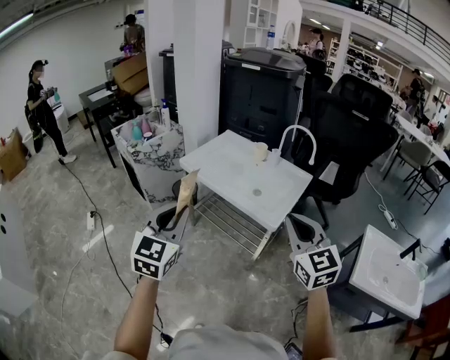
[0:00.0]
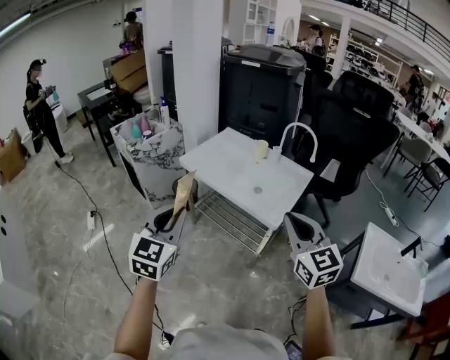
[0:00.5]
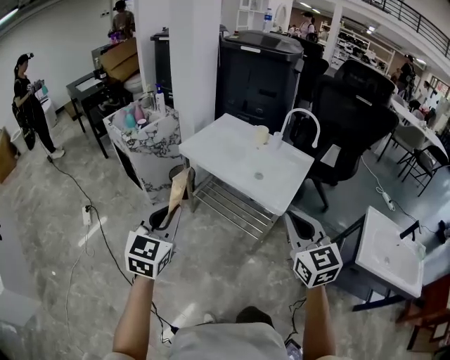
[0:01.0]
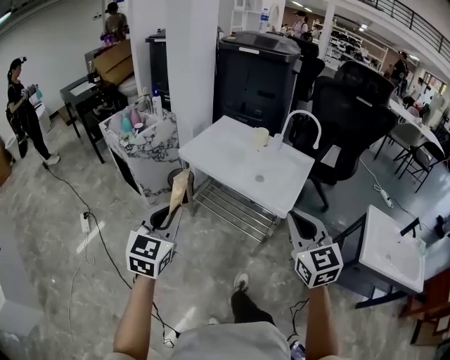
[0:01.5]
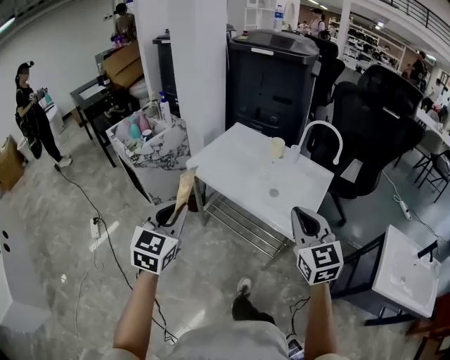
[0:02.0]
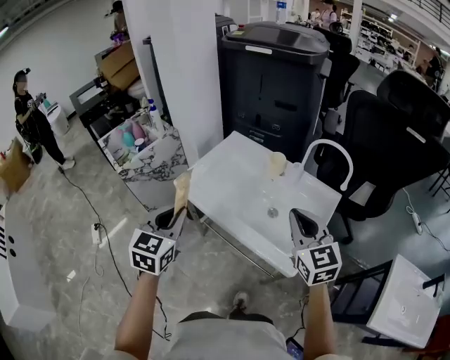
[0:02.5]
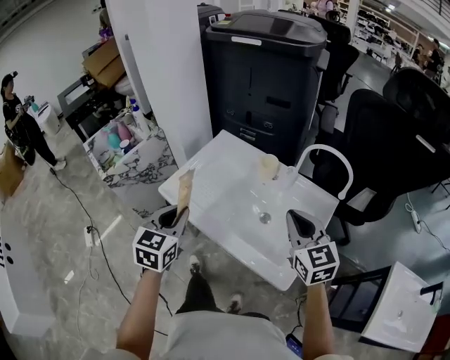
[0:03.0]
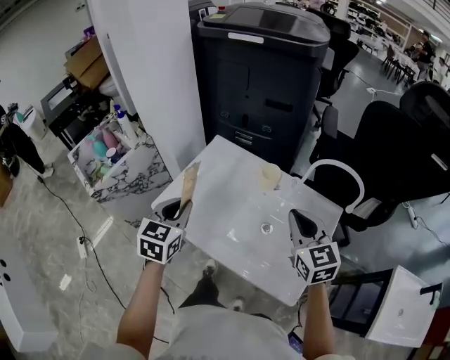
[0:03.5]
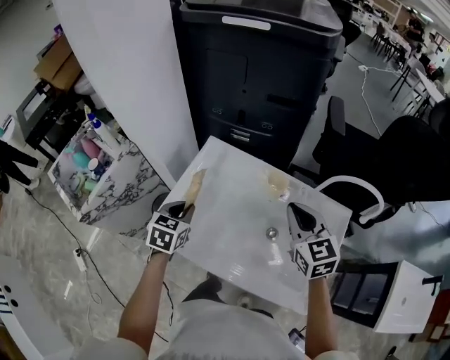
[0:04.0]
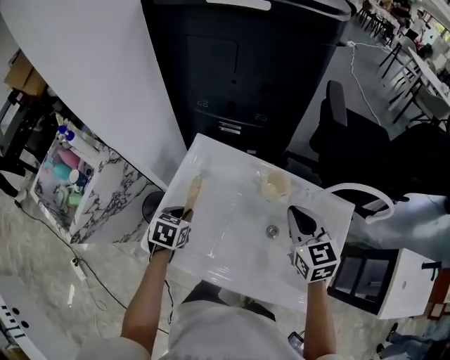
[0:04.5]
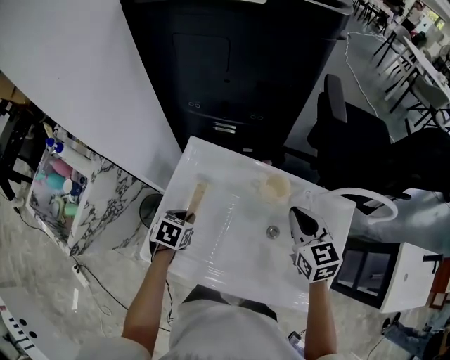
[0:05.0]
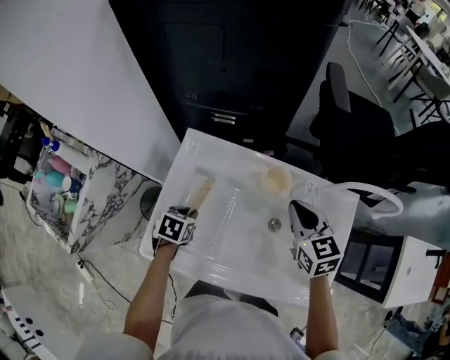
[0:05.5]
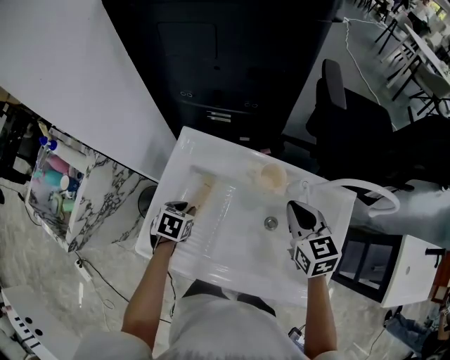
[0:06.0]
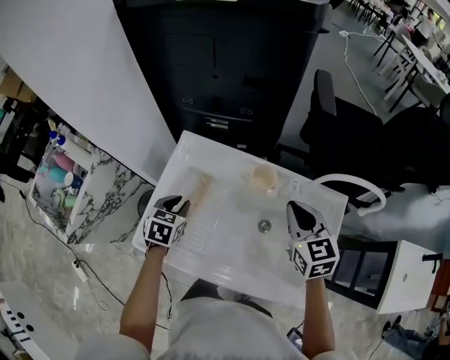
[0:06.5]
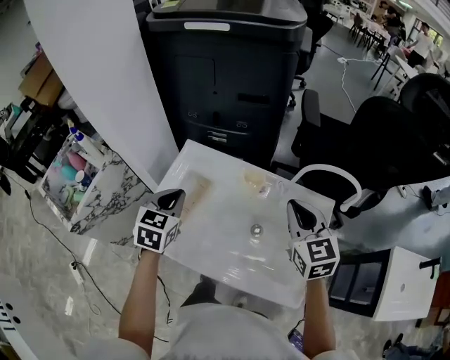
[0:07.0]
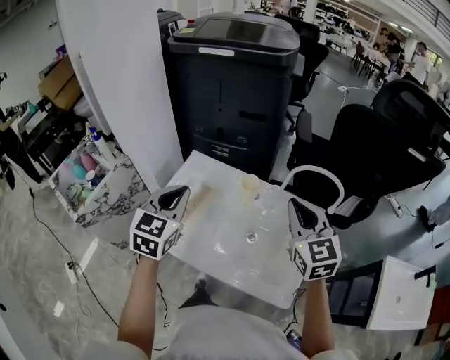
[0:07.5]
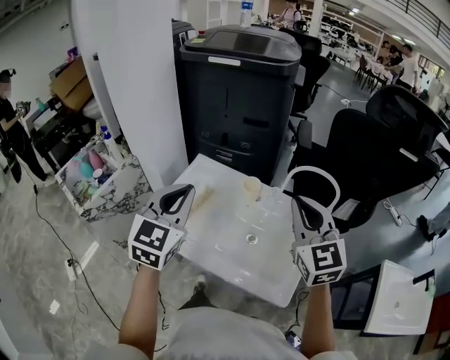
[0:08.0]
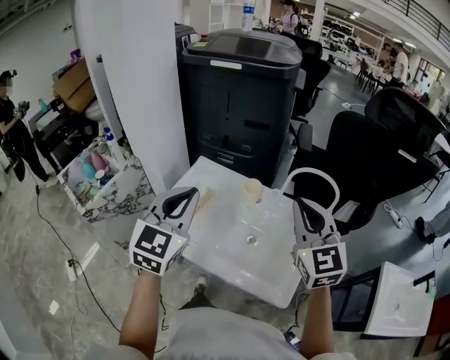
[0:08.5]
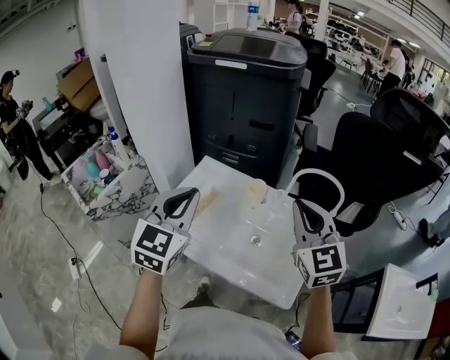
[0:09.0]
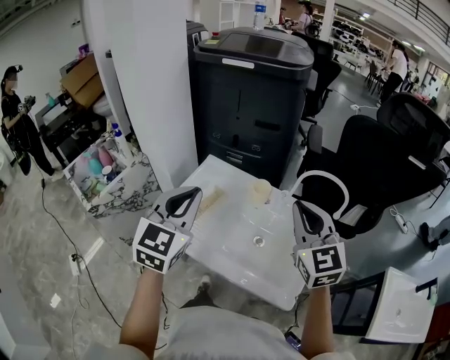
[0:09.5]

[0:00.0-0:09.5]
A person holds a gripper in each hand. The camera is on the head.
0.0 to 2.0 s: Both grippers move forward and to the left, approximately 15 cm.
2.0 to 4.0 s: The two grippers travel together, forward, approximately 50 cm. The left gripper shifts about 20 cm downward, and turns by roughly 30 degrees.
4.0 to 5.5 s: The right gripper moves downward and forward, approximately 10 cm. The left gripper moves downward, approximately 15 cm, and rotates approximately 30 degrees.
5.5 to 7.5 s: The right gripper travels upward, backward and to the right by some 25 cm, and swivels approximately 20 degrees. Meanwhile the left gripper heads upward, covering approximately 35 cm, and points its fingers roughly 50 degrees further upward.
7.5 to 9.5 s: The left gripper moves backward and upward, approximately 10 cm; the right gripper shifts by approximately 5 cm.

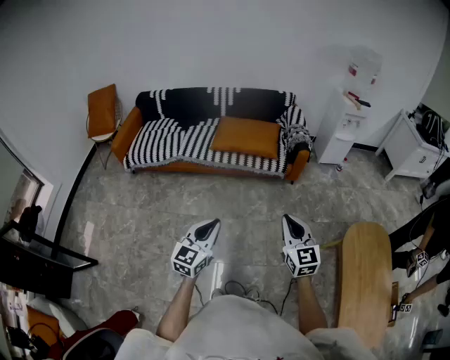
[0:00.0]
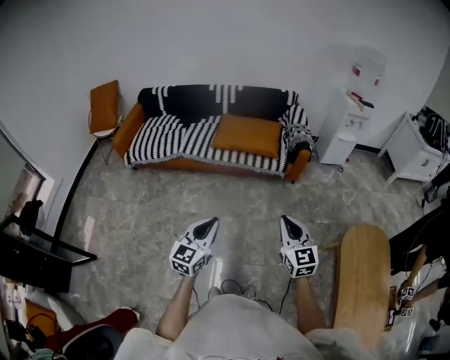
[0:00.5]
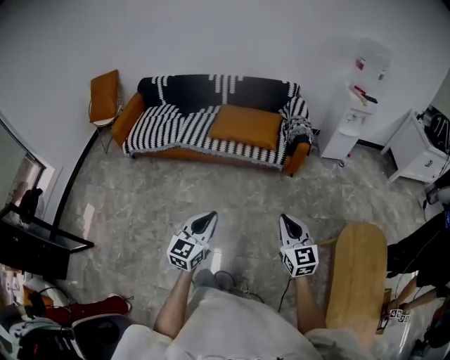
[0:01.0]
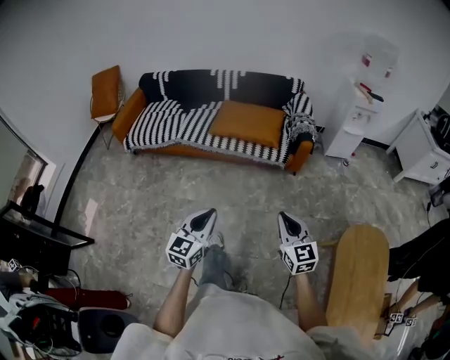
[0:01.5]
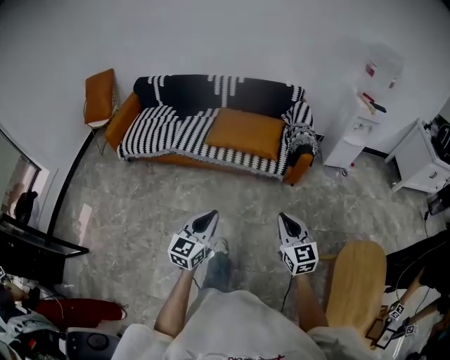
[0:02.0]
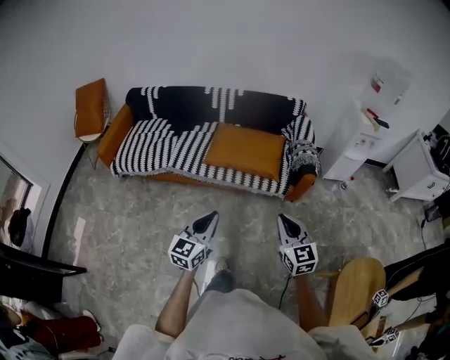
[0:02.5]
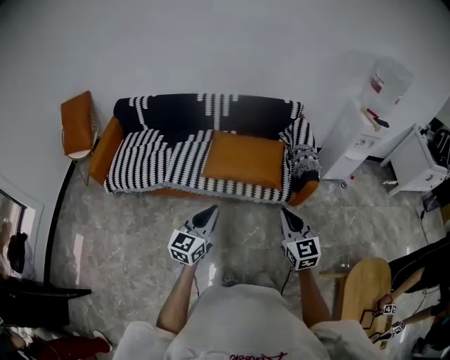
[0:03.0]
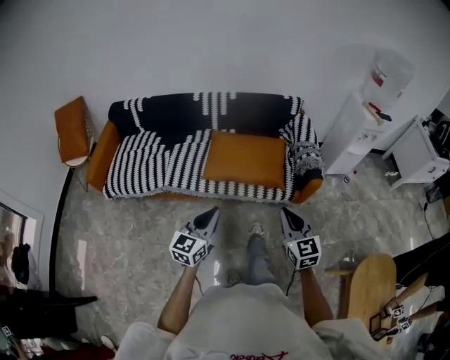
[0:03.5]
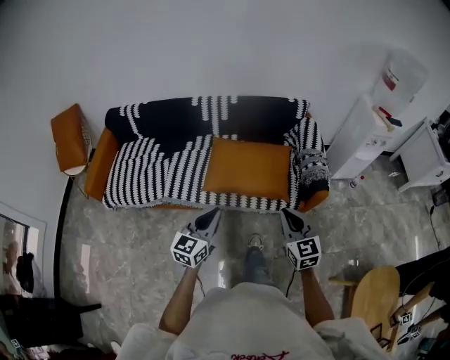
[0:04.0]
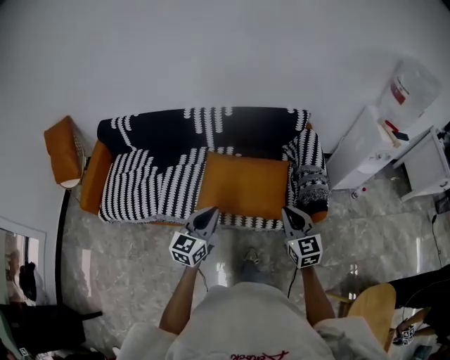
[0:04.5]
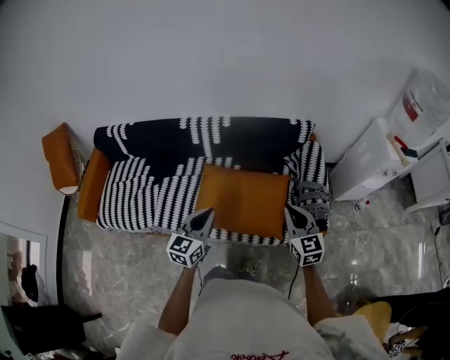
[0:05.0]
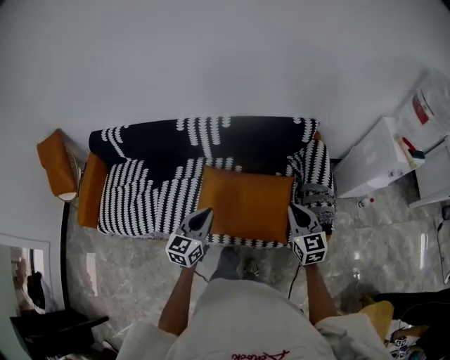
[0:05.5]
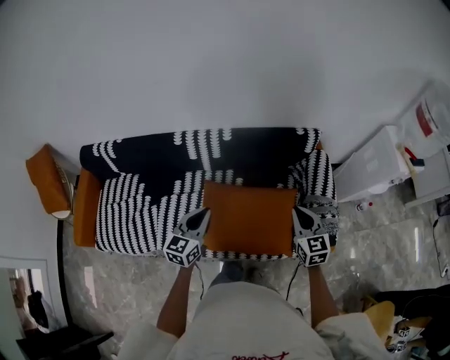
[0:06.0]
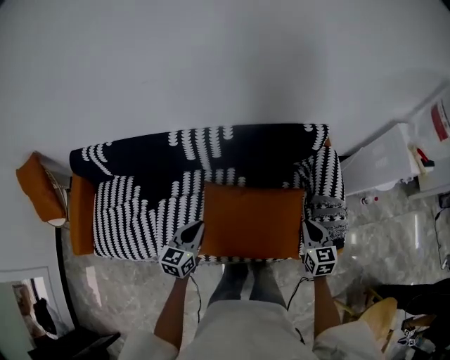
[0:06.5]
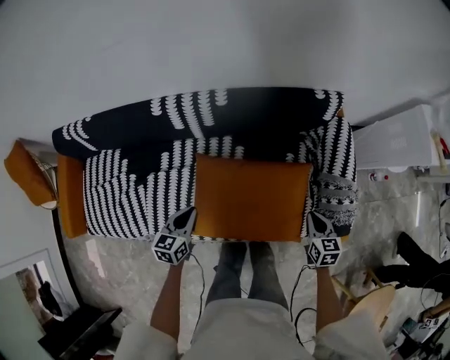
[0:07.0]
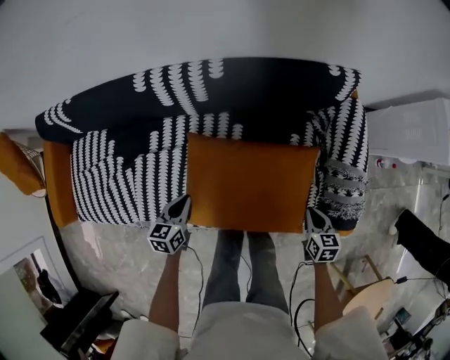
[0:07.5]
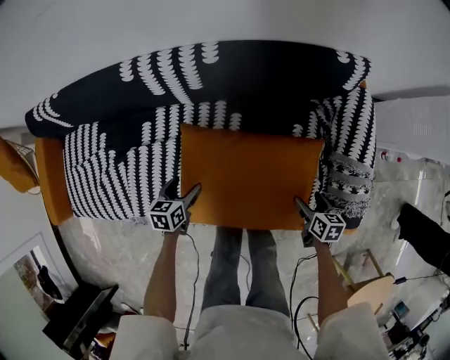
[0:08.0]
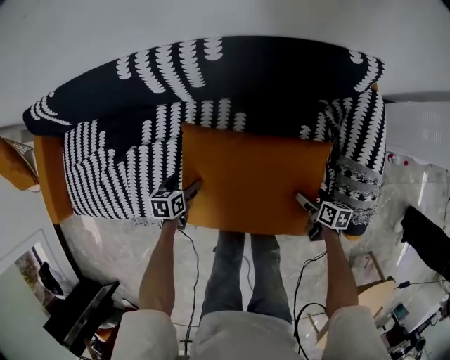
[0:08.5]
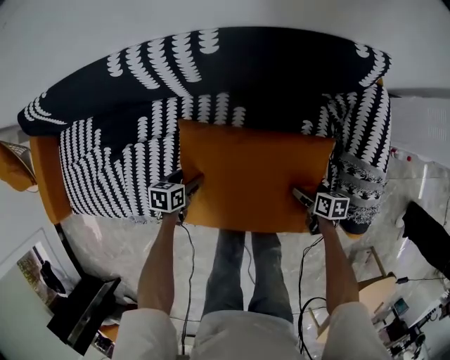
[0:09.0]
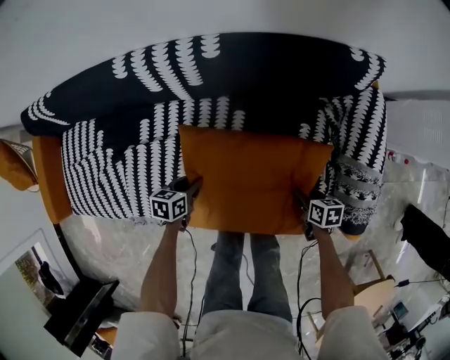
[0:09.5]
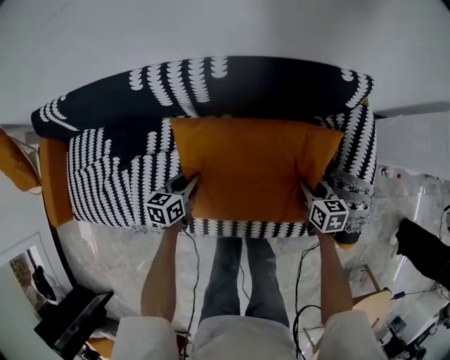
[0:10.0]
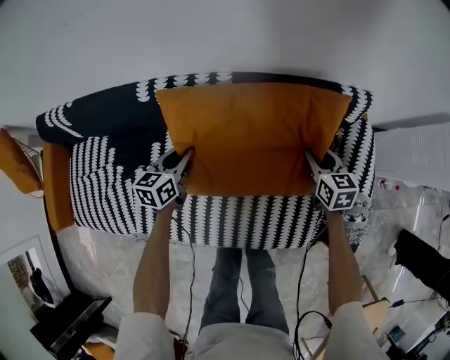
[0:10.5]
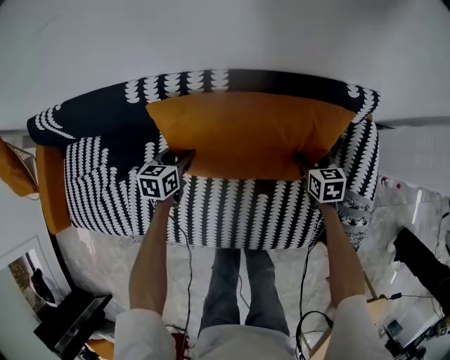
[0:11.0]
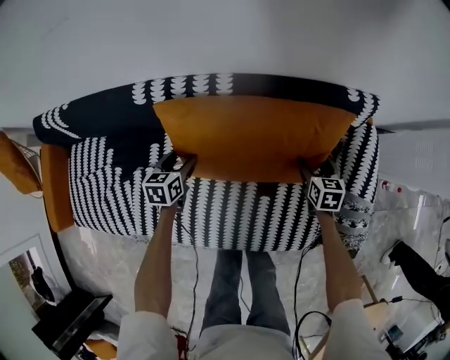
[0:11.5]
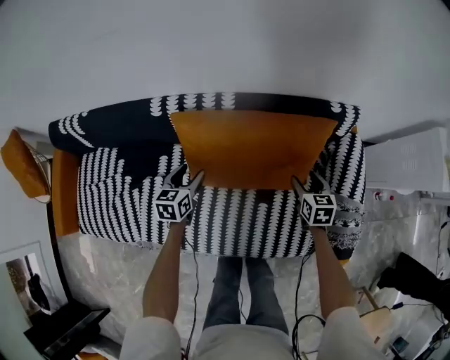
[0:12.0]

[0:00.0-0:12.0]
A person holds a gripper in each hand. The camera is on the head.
0.0 to 2.0 s: Both grippers move forward and to the right, some 15 cm.
2.0 to 4.0 s: The grippers both shift forward by approximately 40 cm.
4.0 to 6.0 s: The pair of grippers is taken forward, some 40 cm.
6.0 to 8.0 s: The grippers both shift downward by approximately 35 cm. The right gripper points its fingers about 30 degrees further downward, and opens its fingers. The left gripper tilts its fingers roughly 30 degrees downward, and opens its fingers.
8.0 to 10.0 s: The left gripper goes roughly 5 cm forward, travels downward and back again, about 10 cm each way, and closes, while the right gripper moves forward, approximately 10 cm, and closes its fingers.
10.0 to 12.0 s: The grippers both shift forward and upward by roughly 10 cm. The left gripper opens up.

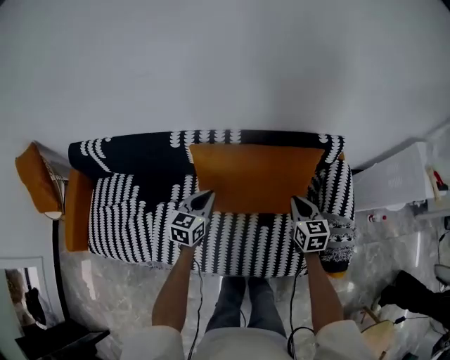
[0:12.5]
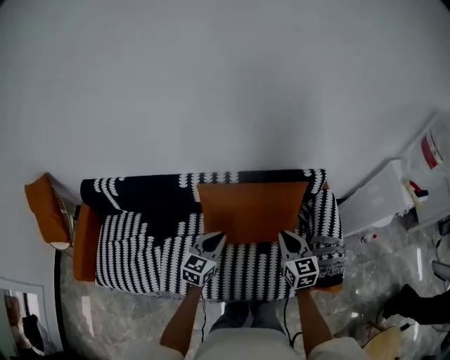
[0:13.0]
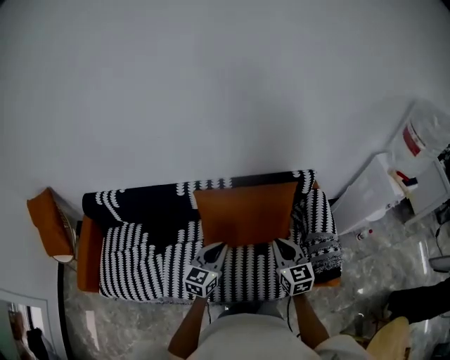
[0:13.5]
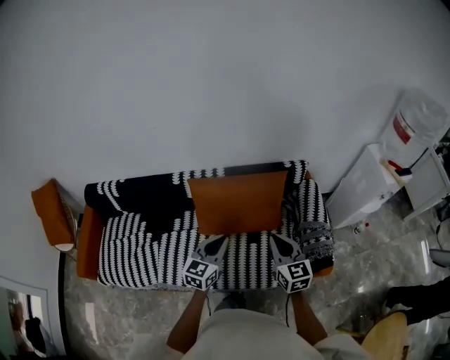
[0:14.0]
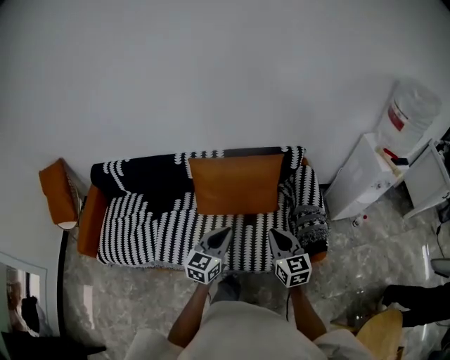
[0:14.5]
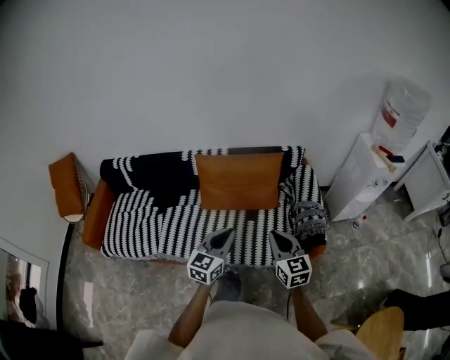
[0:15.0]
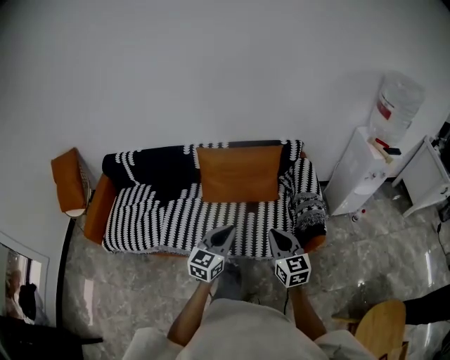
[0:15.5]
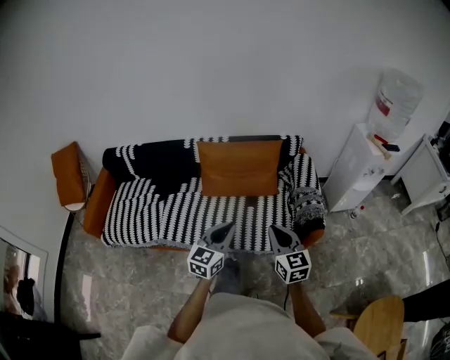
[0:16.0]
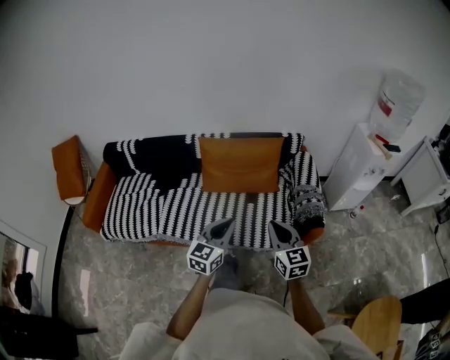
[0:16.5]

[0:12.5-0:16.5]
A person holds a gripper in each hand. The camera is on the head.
12.5 to 14.5 s: The left gripper goes about 35 cm backward, upward and to the right; the right gripper goes roughly 35 cm backward and upward.
14.5 to 16.5 s: The two grippers go about 15 cm backward.

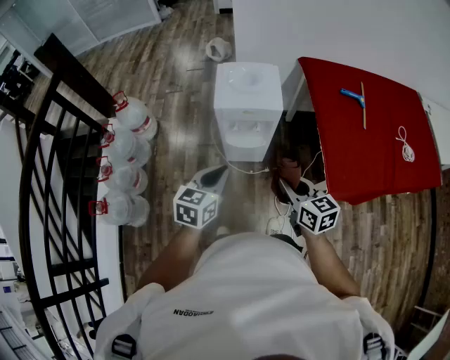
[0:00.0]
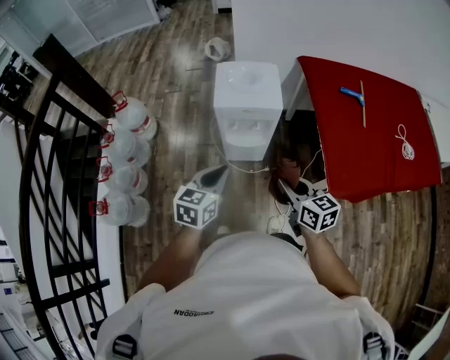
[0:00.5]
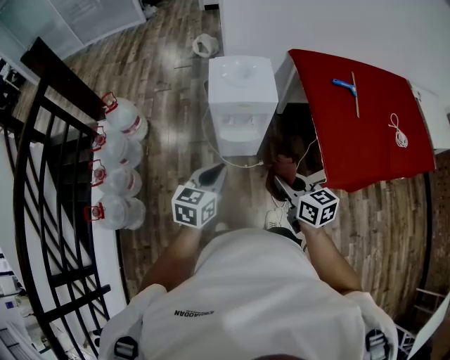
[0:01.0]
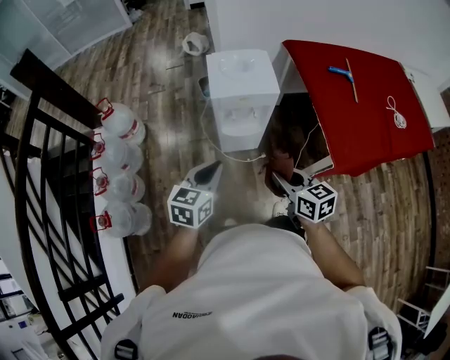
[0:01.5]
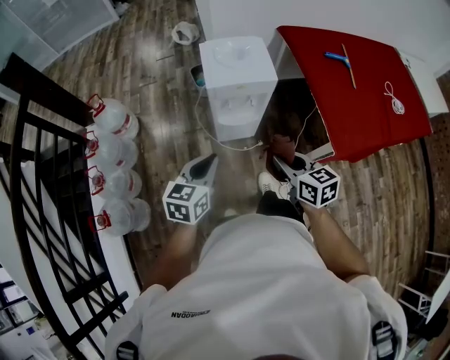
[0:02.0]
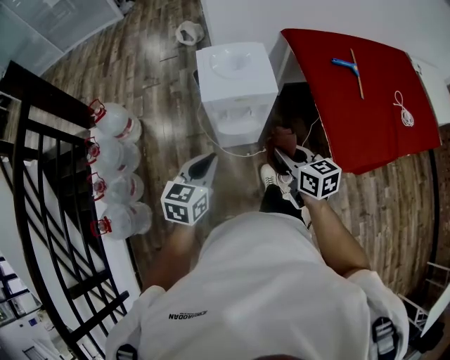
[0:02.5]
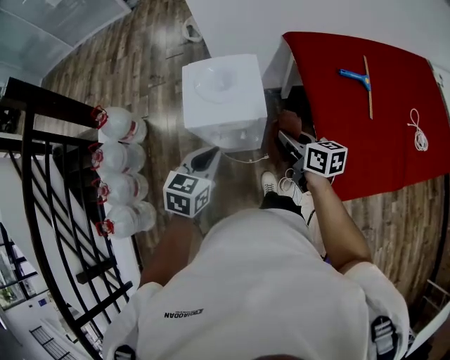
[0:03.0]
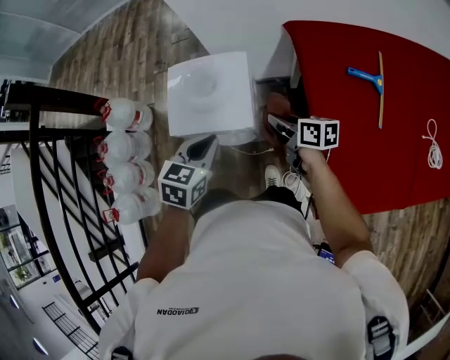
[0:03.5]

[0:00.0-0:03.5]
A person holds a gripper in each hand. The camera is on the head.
0.0 to 2.0 s: Both grippers travel together to the left, roughly 5 cm.
2.0 to 3.5 s: Both grippers travel together forward and to the right, about 35 cm. The right gripper rotates some 30 degrees; the left gripper turns by some 20 degrees.
